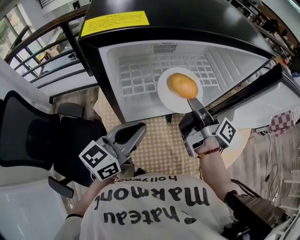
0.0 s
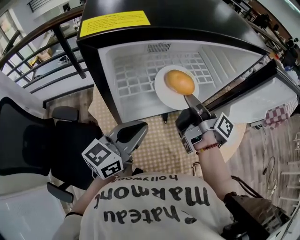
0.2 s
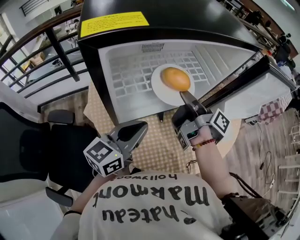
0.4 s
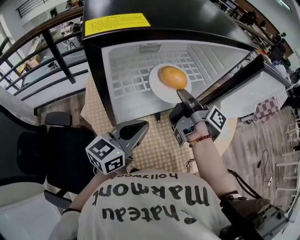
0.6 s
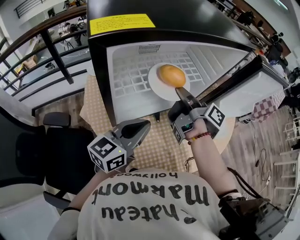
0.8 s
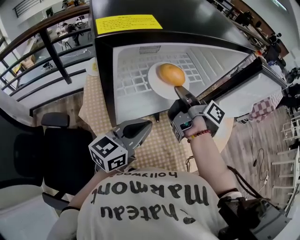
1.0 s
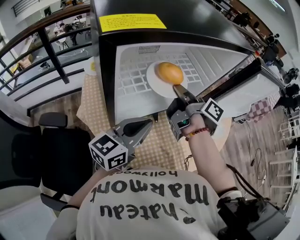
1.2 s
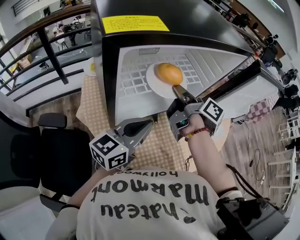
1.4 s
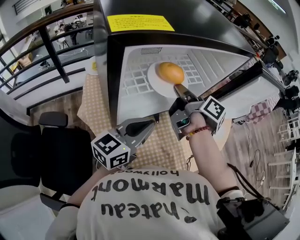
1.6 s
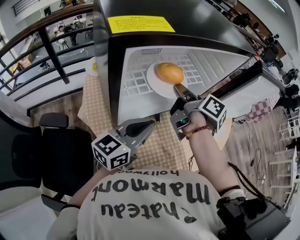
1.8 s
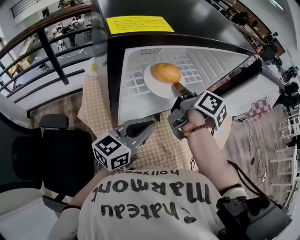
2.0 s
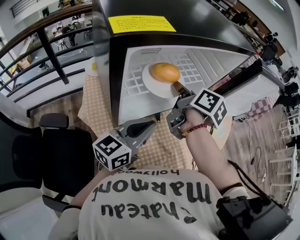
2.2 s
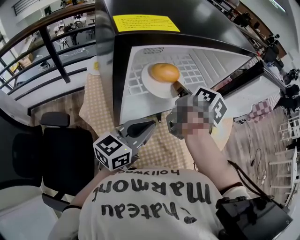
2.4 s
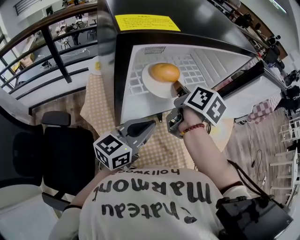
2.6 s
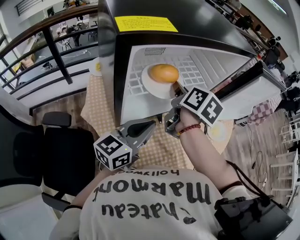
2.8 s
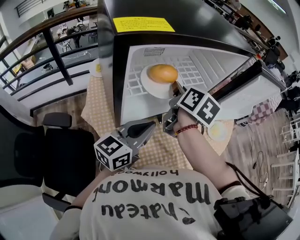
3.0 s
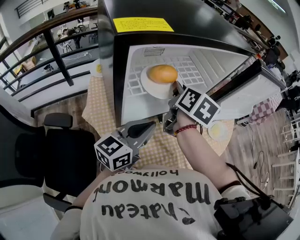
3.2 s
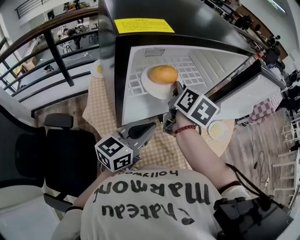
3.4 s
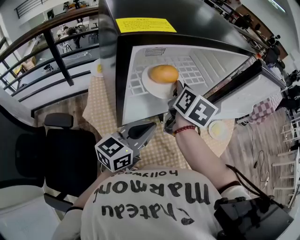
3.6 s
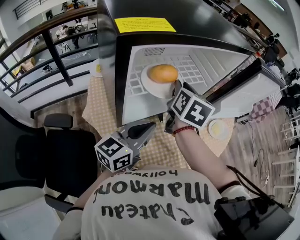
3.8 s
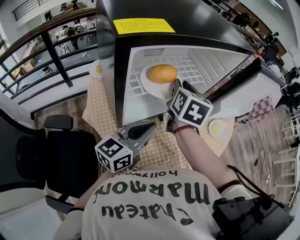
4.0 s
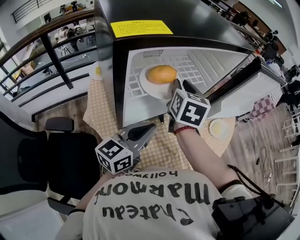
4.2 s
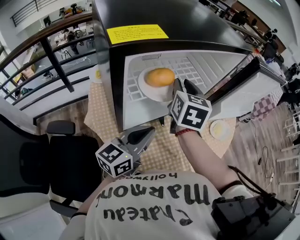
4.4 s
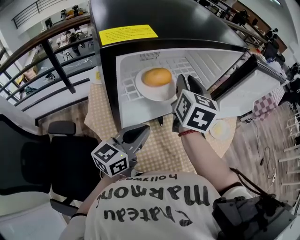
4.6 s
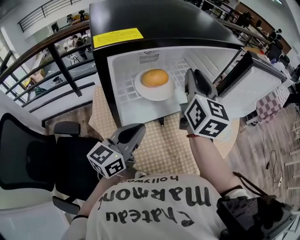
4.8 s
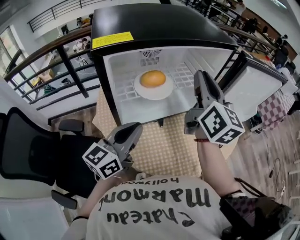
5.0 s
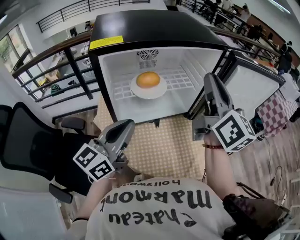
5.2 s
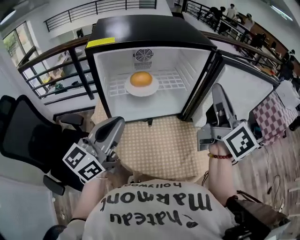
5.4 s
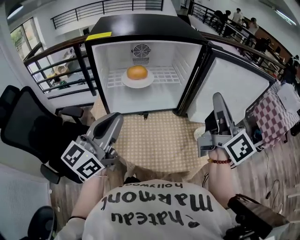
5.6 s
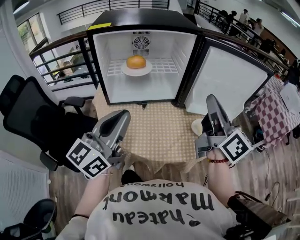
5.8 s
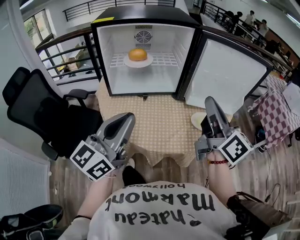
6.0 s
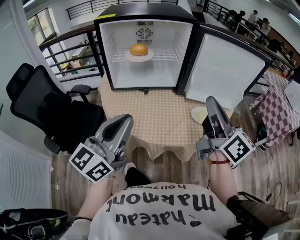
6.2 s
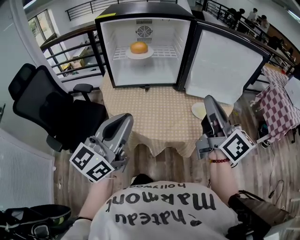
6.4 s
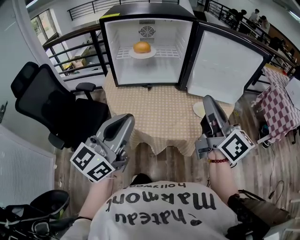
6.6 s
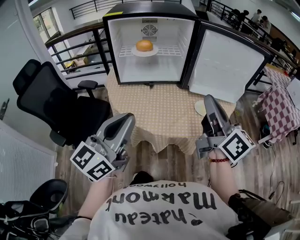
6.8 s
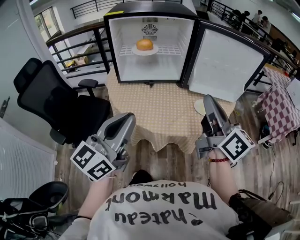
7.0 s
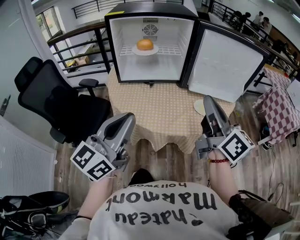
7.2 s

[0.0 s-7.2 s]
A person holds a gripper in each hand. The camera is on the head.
0.0 to 1.4 s: The right gripper changes its angle by approximately 20 degrees.
1.4 to 2.8 s: The right gripper swivels roughly 40 degrees.
2.8 to 4.4 s: The right gripper changes its angle by about 30 degrees.
4.4 to 5.8 s: The left gripper ends up about 25 cm from where it was, and turns by about 30 degrees, while the right gripper shifts by some 35 cm, tips its fingers upward by some 40 degrees, and closes.
5.8 to 7.2 s: Both grippers move backward, roughly 15 cm.

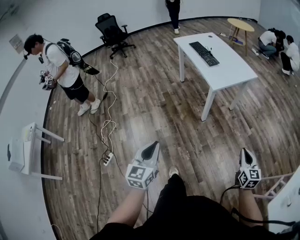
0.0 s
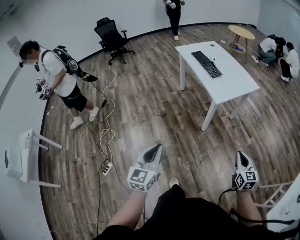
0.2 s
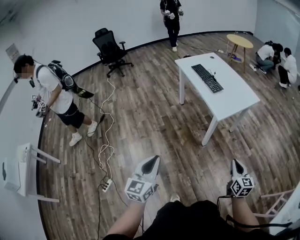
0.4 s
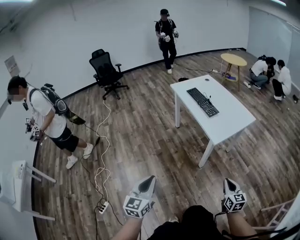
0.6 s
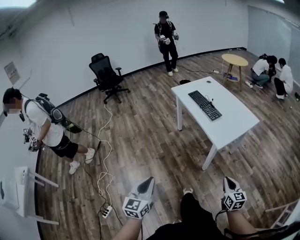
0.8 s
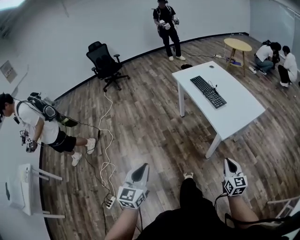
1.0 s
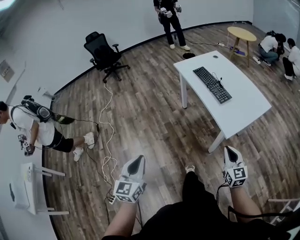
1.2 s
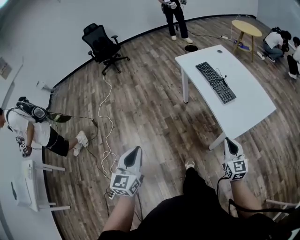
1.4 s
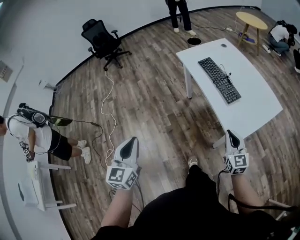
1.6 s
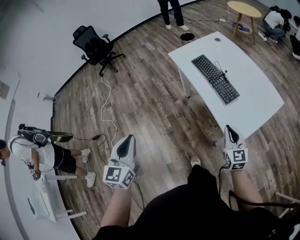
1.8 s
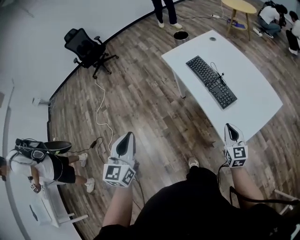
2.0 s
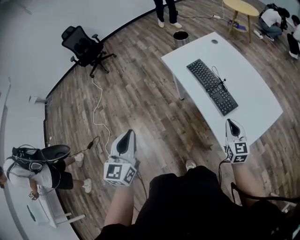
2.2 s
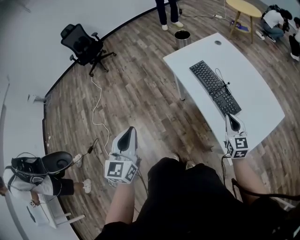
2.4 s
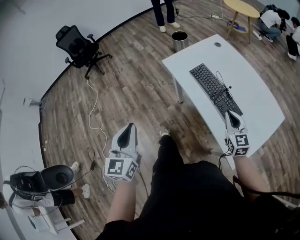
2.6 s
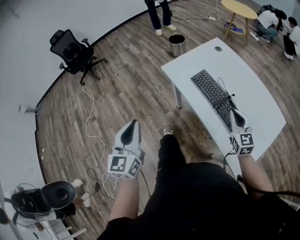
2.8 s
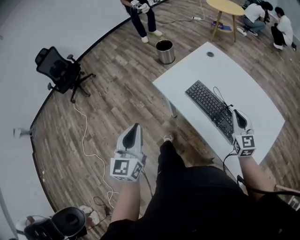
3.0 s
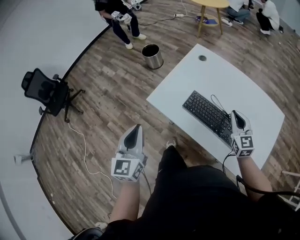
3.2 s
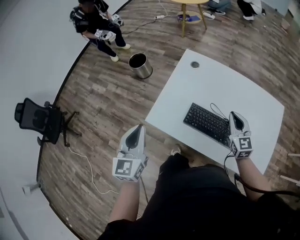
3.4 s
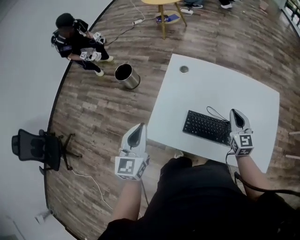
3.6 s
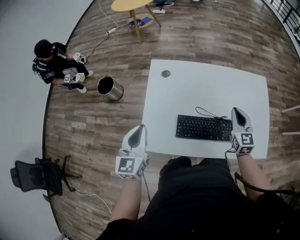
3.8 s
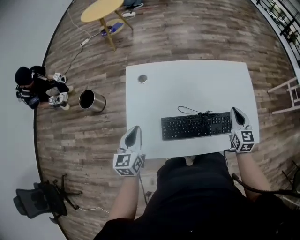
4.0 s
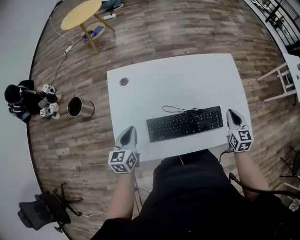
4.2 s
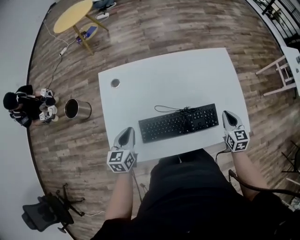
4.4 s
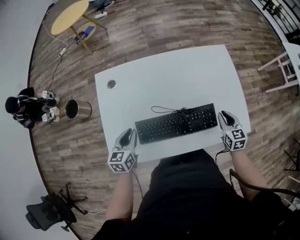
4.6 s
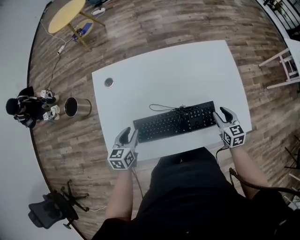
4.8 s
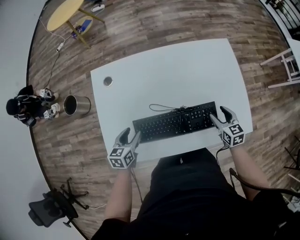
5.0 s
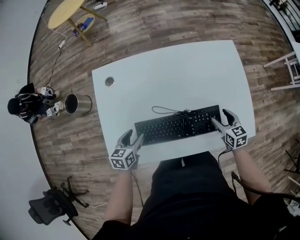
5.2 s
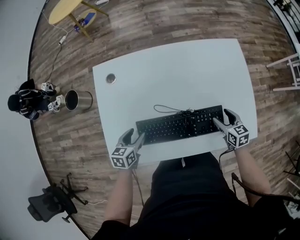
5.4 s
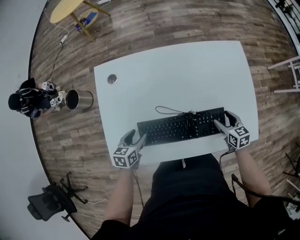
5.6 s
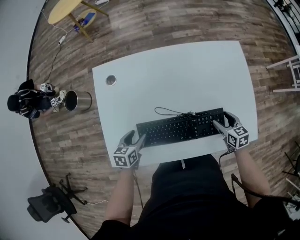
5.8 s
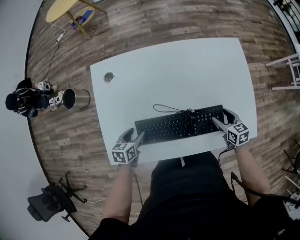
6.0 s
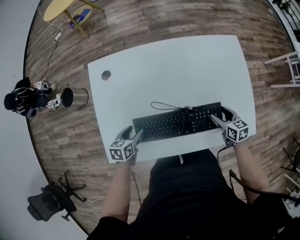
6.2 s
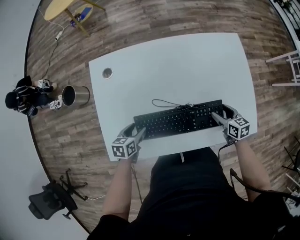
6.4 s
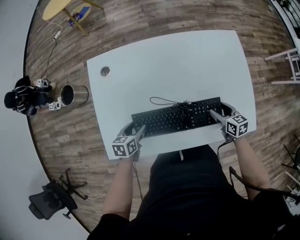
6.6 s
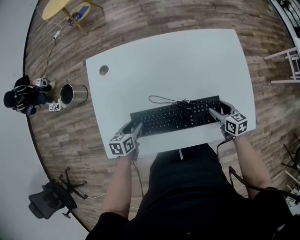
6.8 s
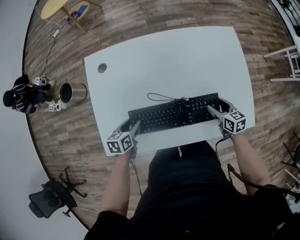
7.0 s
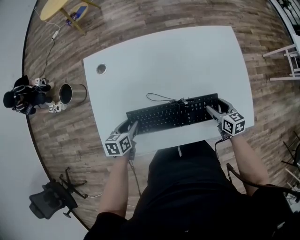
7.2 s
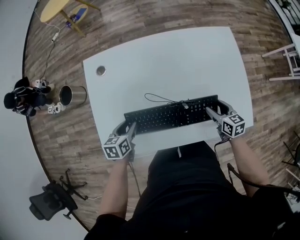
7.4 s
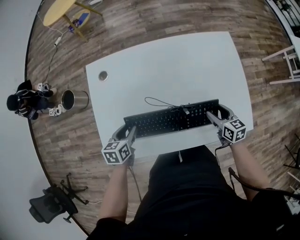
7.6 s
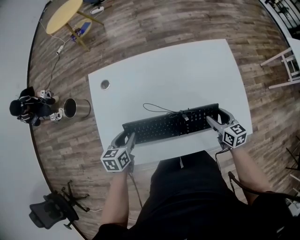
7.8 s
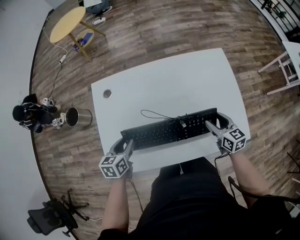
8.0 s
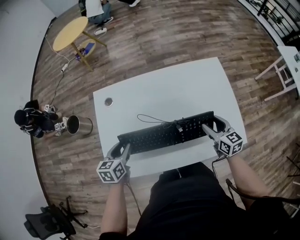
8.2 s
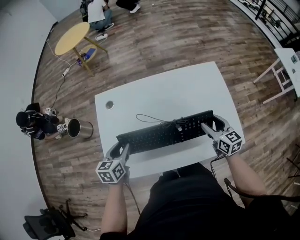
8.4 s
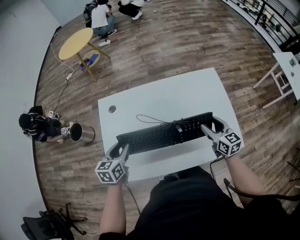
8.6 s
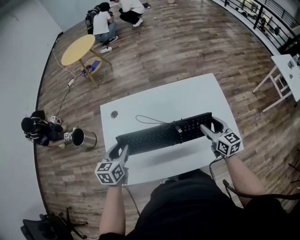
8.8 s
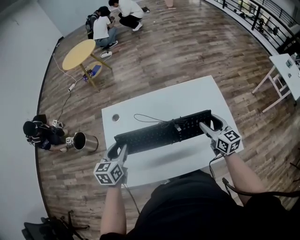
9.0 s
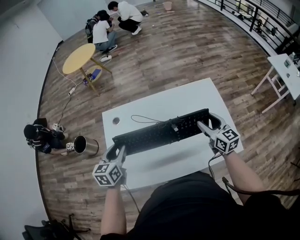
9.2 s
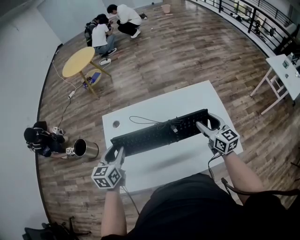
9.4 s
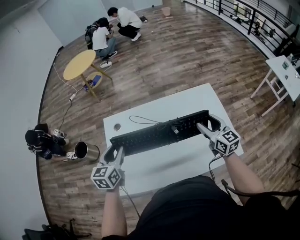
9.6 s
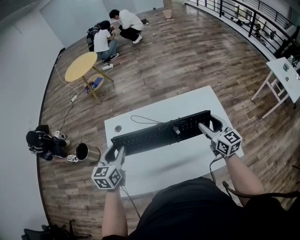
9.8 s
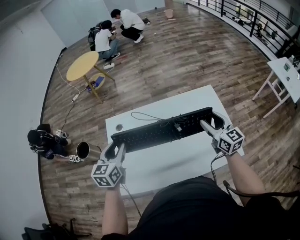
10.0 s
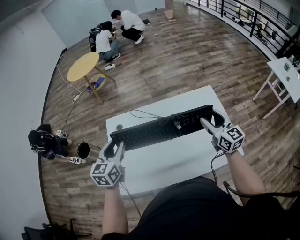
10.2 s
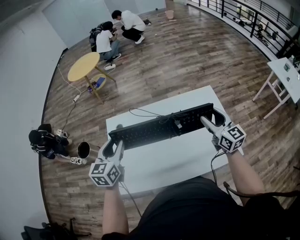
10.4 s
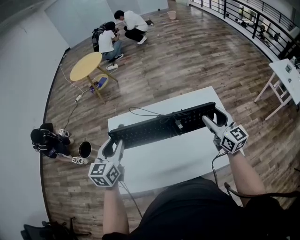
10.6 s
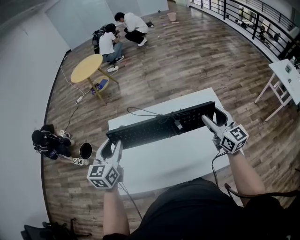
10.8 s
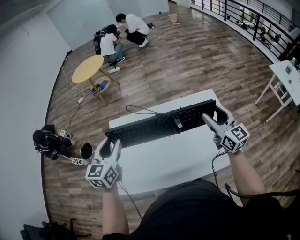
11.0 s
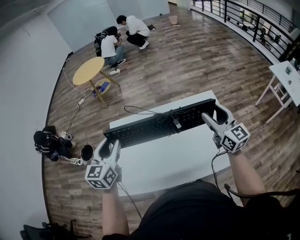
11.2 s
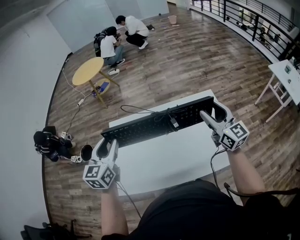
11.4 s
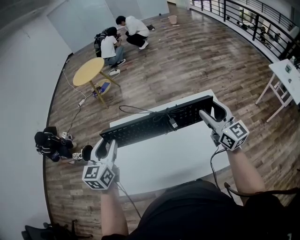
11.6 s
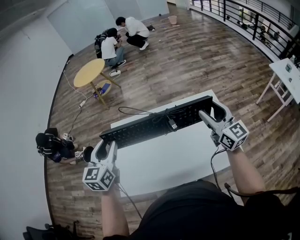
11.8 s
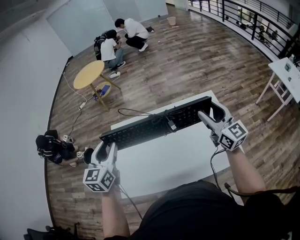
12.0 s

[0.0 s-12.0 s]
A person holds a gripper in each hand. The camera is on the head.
0.0 to 1.6 s: The two grippers travel together, forward and to the left, about 50 cm.
1.6 to 3.0 s: Both grippers travel together forward, about 35 cm. The right gripper changes its angle by approximately 20 degrees.
3.0 to 4.4 s: The left gripper changes place by about 40 cm, and turns by about 60 degrees. The right gripper changes place by about 20 cm, and turns by approximately 60 degrees.
4.4 to 6.0 s: Both grippers travel together downward, some 10 cm. The right gripper turns by approximately 30 degrees, and opens; the left gripper changes its angle by some 30 degrees, and opens its fingers.
6.0 to 7.6 s: The left gripper goes approximately 5 cm upward, and closes up.
7.6 to 9.0 s: Both grippers move upward and forward, about 15 cm. The left gripper swivels approximately 20 degrees; the right gripper swivels about 30 degrees.
9.0 to 10.4 s: Both grippers travel together upward, approximately 10 cm.
10.4 to 12.0 s: The grippers both shift upward by approximately 5 cm.

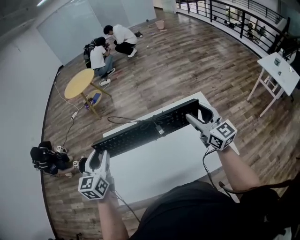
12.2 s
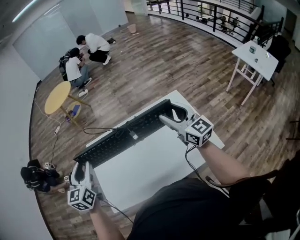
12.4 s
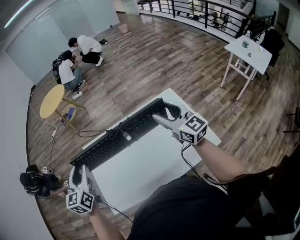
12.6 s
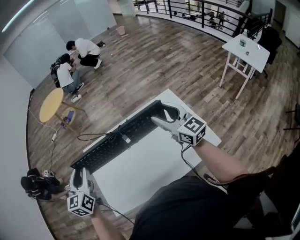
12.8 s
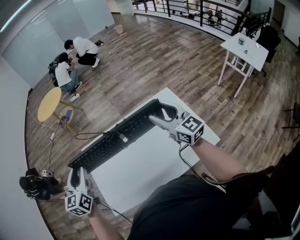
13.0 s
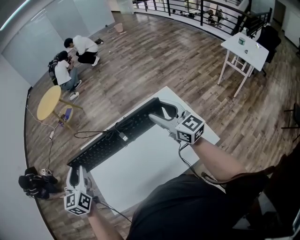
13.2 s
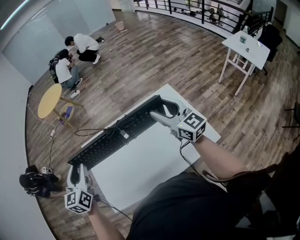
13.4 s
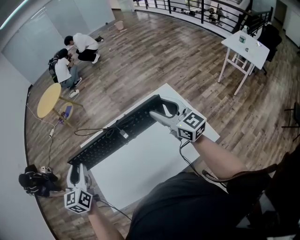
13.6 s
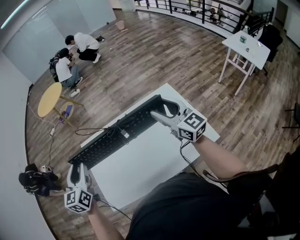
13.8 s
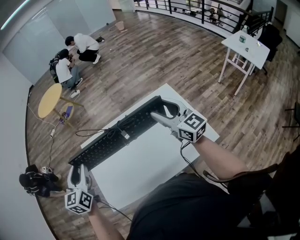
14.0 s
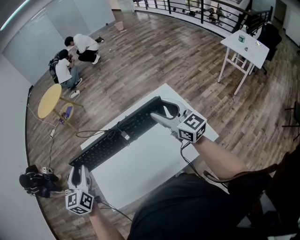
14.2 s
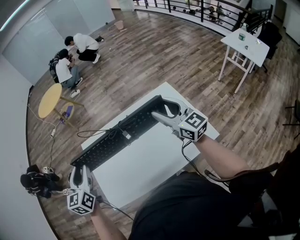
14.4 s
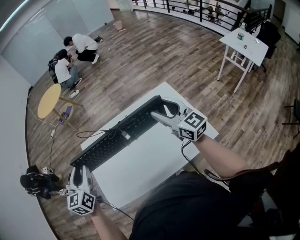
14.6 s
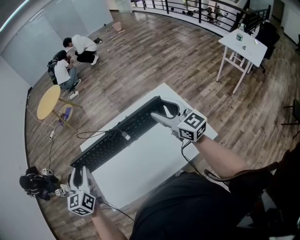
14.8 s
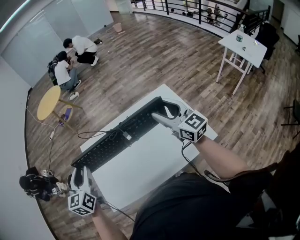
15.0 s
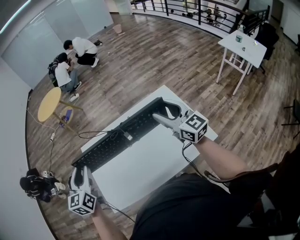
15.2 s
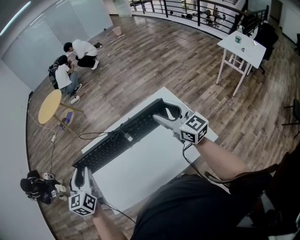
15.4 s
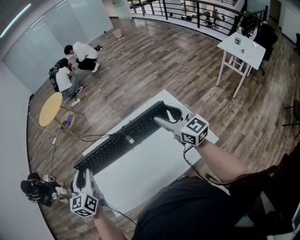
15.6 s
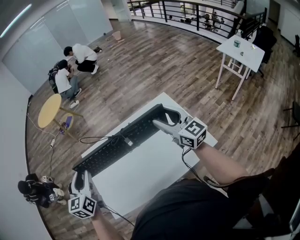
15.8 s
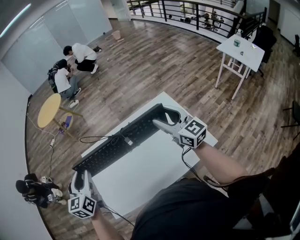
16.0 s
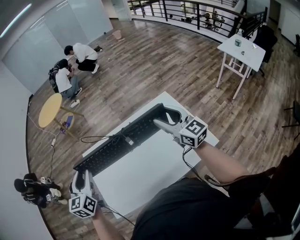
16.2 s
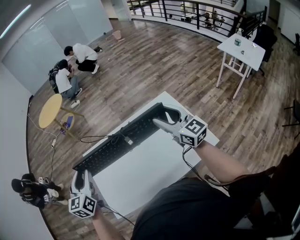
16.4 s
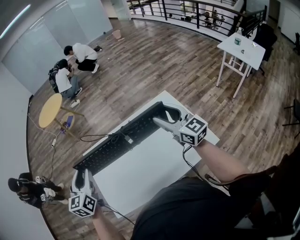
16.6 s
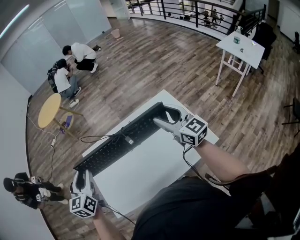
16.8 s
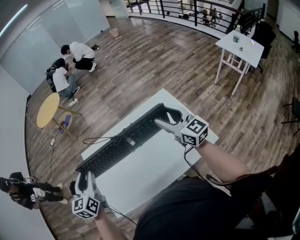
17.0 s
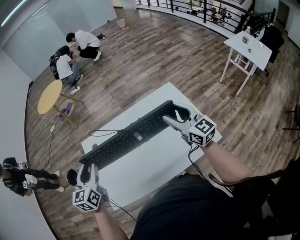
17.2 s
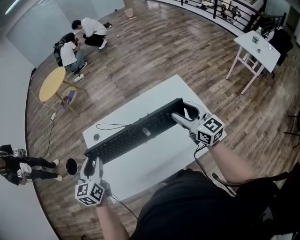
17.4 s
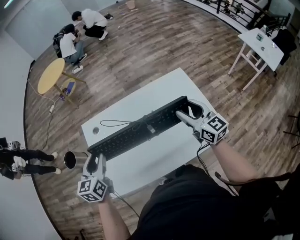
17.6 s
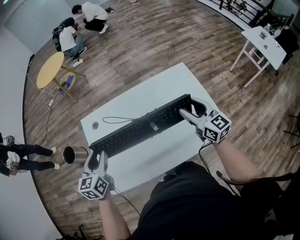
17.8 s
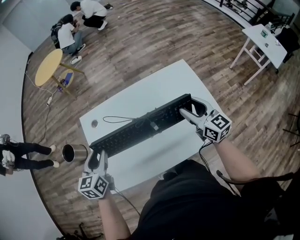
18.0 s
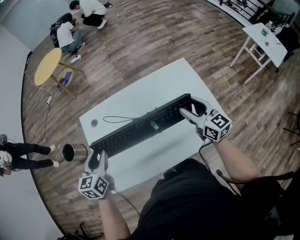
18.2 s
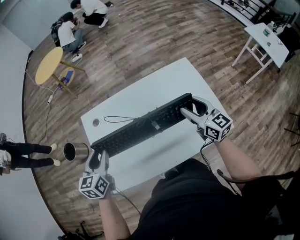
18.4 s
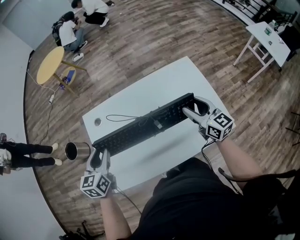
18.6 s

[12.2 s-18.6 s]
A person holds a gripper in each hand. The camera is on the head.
12.2 to 17.0 s: There are only small adjustments of the grippers.
17.0 to 18.6 s: The two grippers go approximately 10 cm downward.
